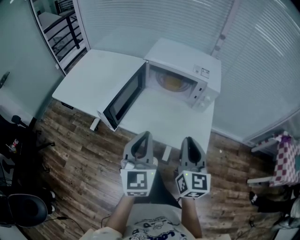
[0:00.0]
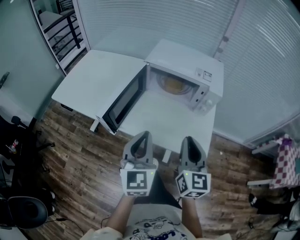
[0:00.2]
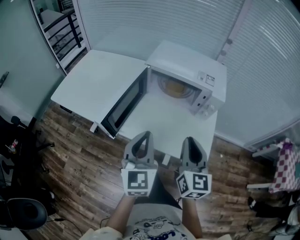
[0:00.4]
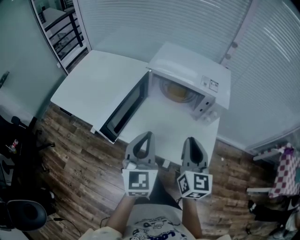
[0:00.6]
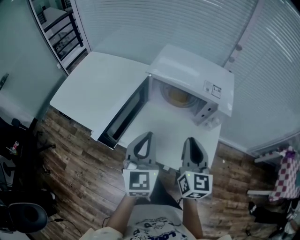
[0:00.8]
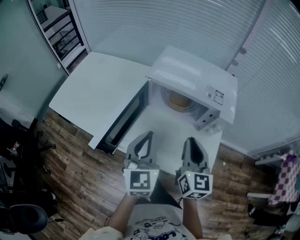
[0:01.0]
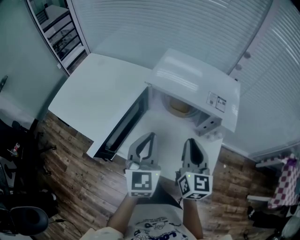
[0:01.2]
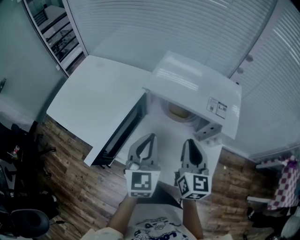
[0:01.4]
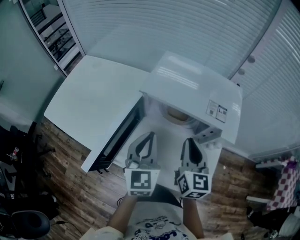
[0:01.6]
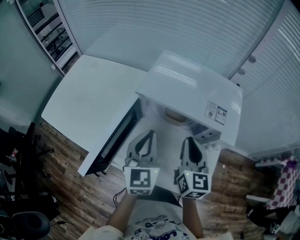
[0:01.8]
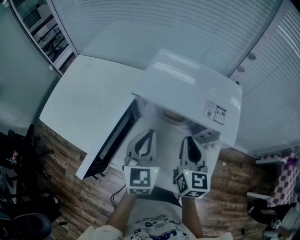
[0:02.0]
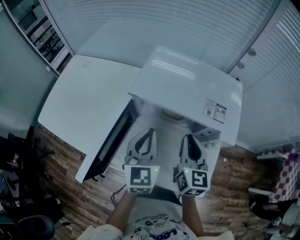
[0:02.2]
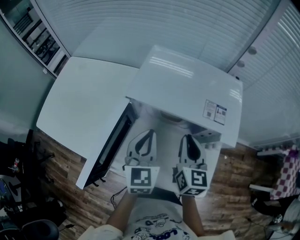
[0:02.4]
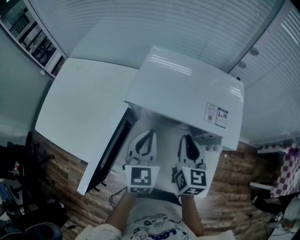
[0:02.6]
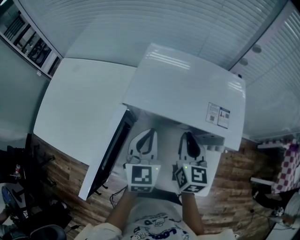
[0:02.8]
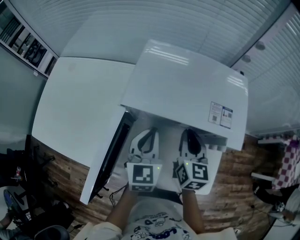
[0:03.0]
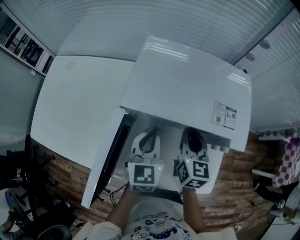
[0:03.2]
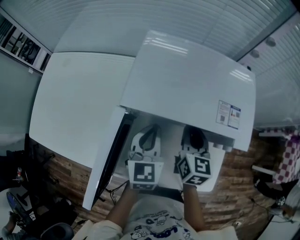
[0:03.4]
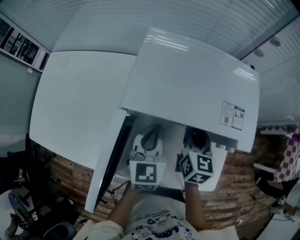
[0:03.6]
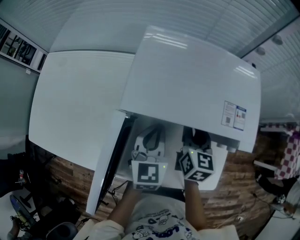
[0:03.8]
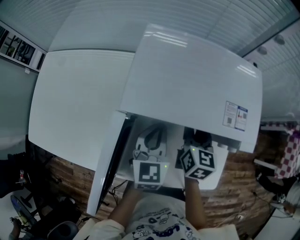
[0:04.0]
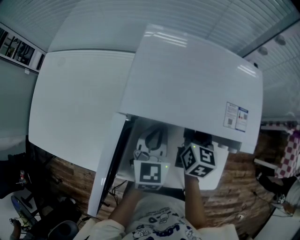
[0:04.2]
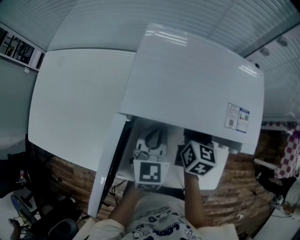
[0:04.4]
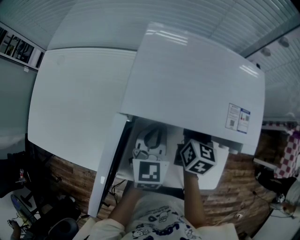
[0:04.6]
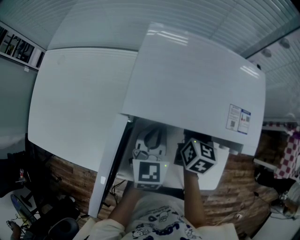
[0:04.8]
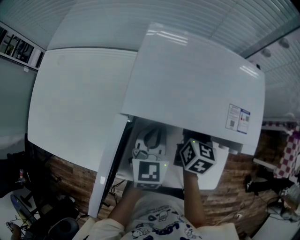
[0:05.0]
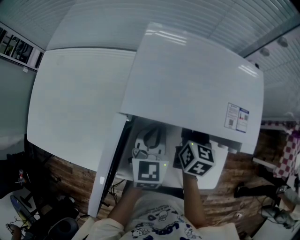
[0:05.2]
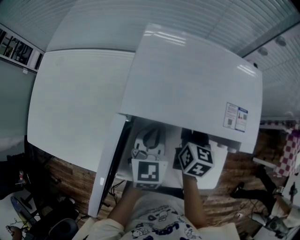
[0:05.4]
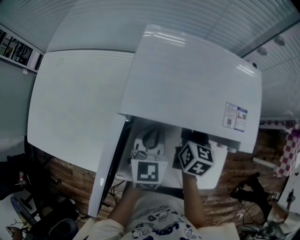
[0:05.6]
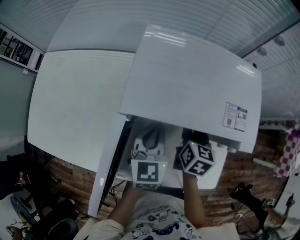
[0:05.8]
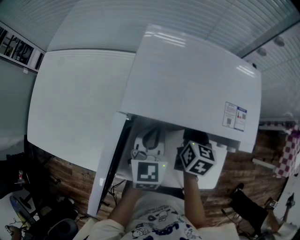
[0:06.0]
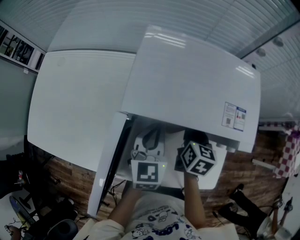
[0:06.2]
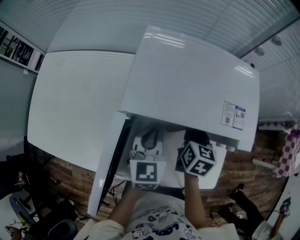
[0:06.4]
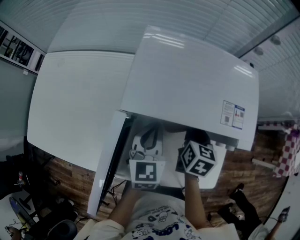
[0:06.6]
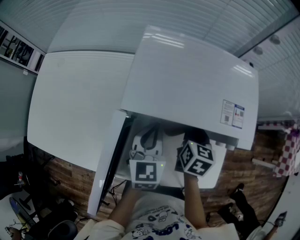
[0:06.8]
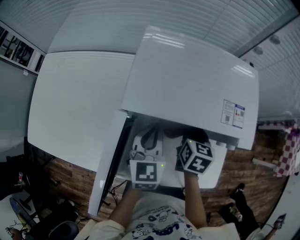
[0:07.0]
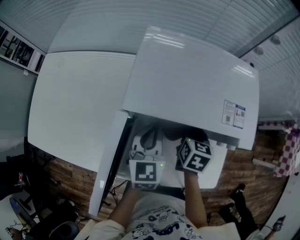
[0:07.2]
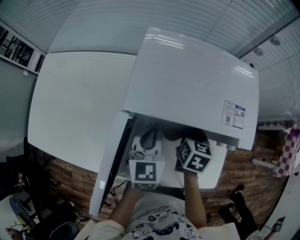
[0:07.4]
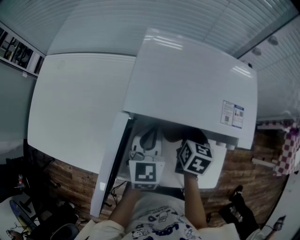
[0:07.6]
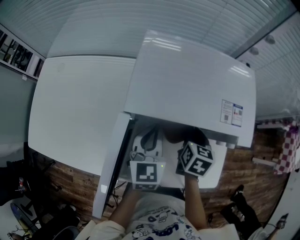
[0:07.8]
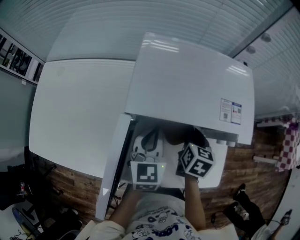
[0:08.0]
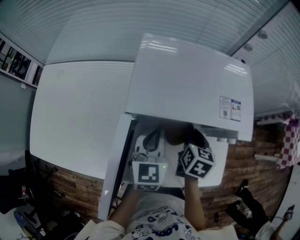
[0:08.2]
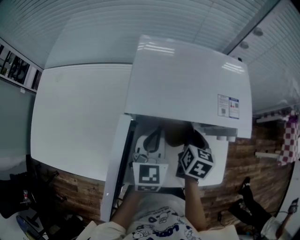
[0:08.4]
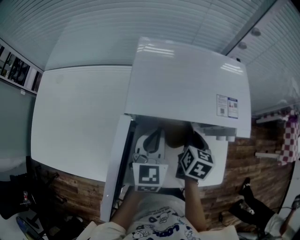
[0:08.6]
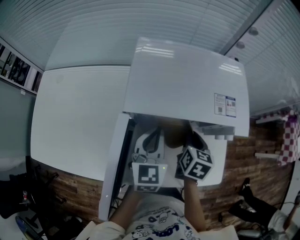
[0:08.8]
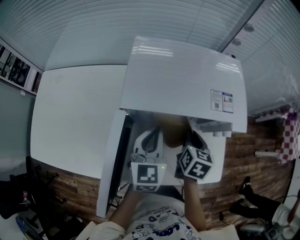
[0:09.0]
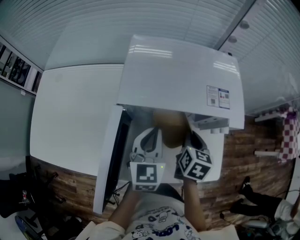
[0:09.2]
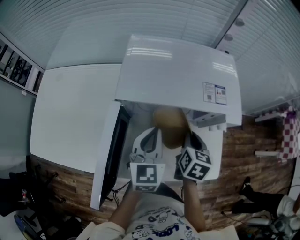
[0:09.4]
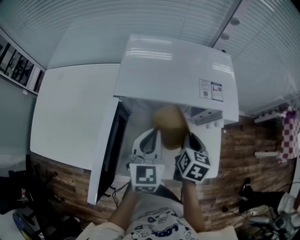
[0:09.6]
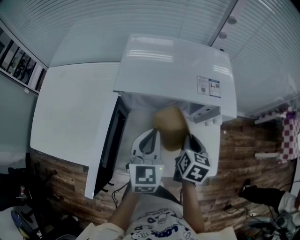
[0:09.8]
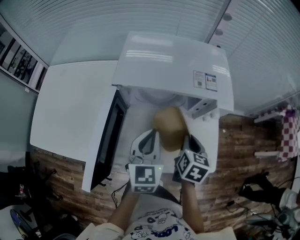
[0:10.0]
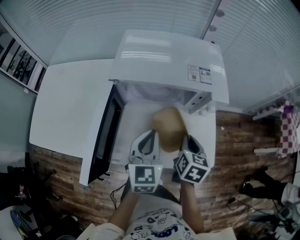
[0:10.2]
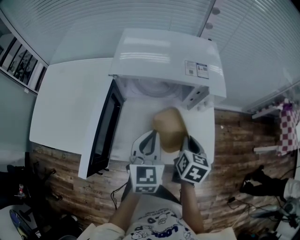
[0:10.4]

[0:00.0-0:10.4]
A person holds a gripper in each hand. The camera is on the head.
0:00.0 to 0:01.4: Both grippers travel together forward, some 25 cm.
0:01.4 to 0:03.0: Both grippers move forward and downward, approximately 15 cm.
0:03.0 to 0:04.4: The right gripper shifts roughly 10 cm downward and forward.
0:04.4 to 0:07.4: The grippers stay close to where they were, moving slightly.
0:07.4 to 0:09.0: The right gripper shifts by about 5 cm.
0:09.0 to 0:10.4: The two grippers go roughly 15 cm backward and to the right.

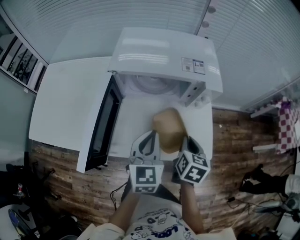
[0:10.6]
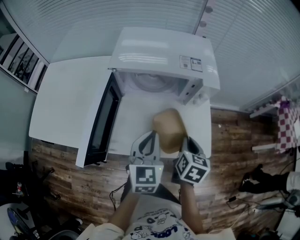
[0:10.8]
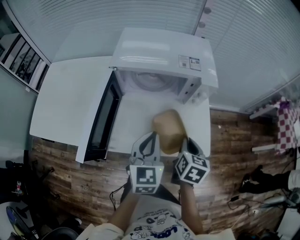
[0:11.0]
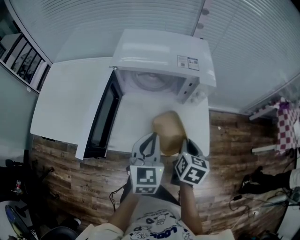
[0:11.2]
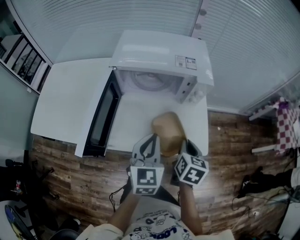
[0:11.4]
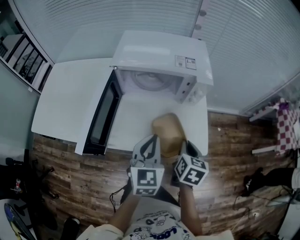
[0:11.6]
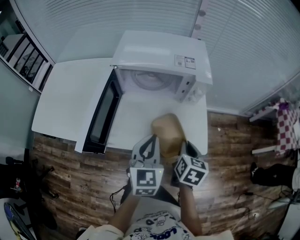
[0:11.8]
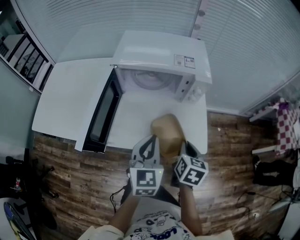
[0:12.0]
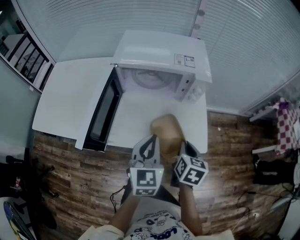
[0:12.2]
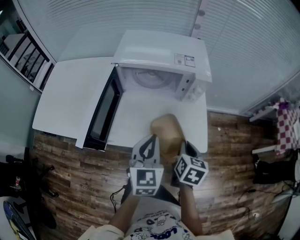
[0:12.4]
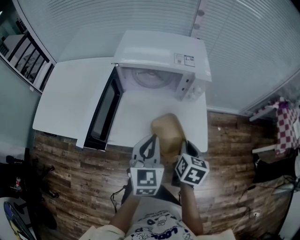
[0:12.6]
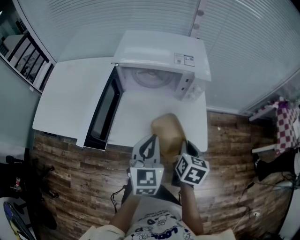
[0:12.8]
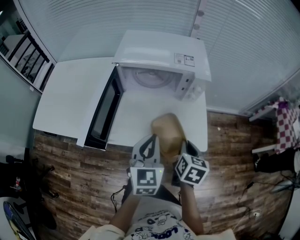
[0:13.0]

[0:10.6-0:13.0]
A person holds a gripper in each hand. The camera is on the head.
0:10.6 to 0:11.8: The two grippers go some 5 cm backward.
0:11.8 to 0:13.0: The grippers make only small movements.

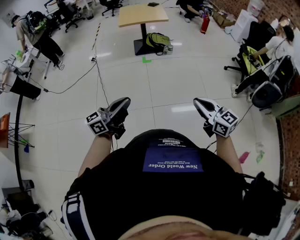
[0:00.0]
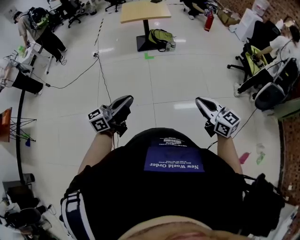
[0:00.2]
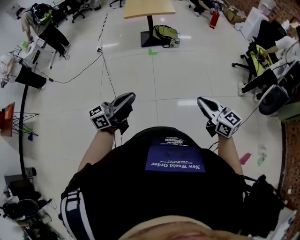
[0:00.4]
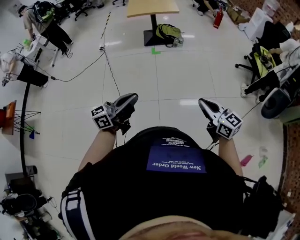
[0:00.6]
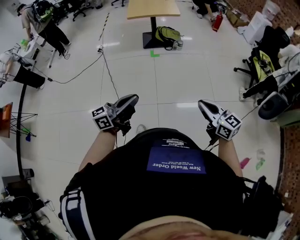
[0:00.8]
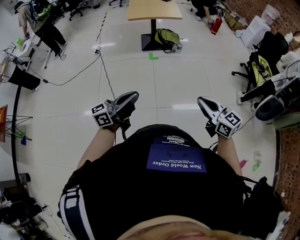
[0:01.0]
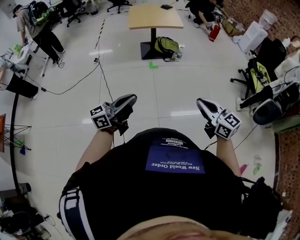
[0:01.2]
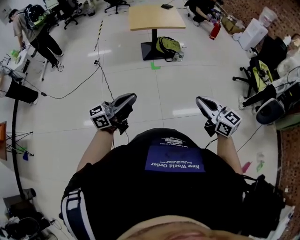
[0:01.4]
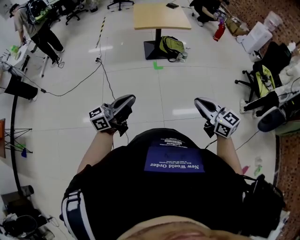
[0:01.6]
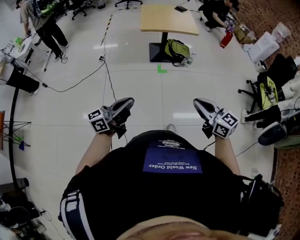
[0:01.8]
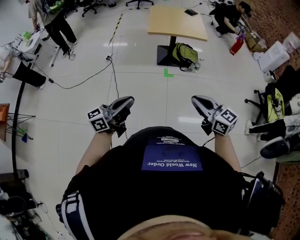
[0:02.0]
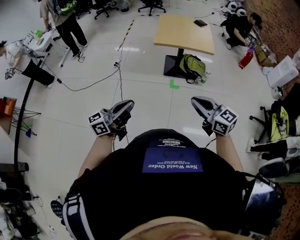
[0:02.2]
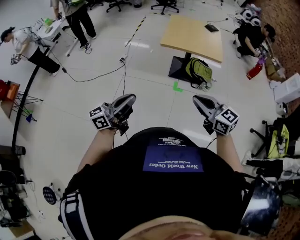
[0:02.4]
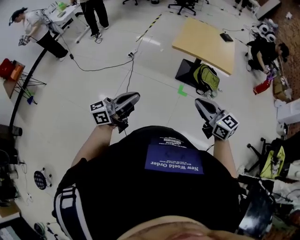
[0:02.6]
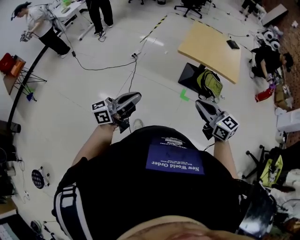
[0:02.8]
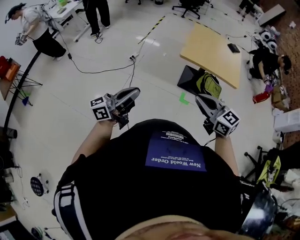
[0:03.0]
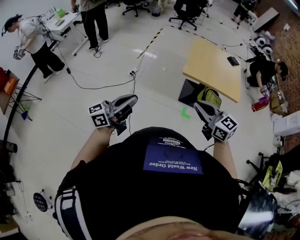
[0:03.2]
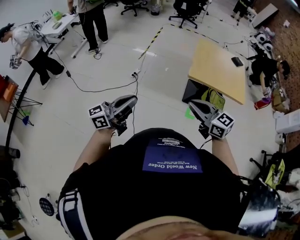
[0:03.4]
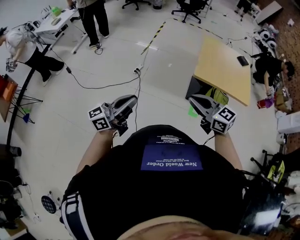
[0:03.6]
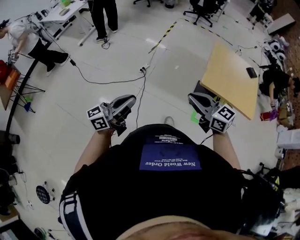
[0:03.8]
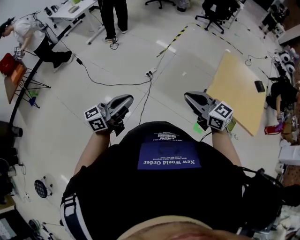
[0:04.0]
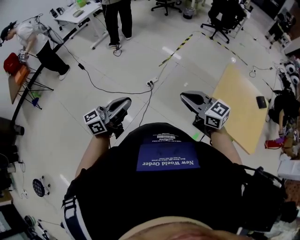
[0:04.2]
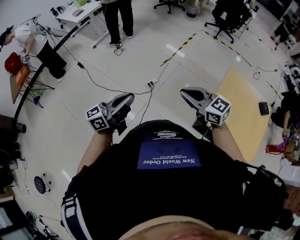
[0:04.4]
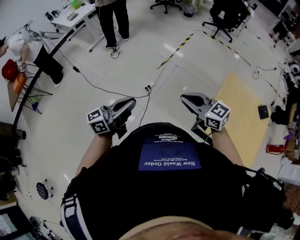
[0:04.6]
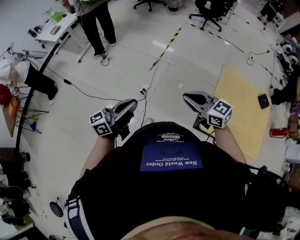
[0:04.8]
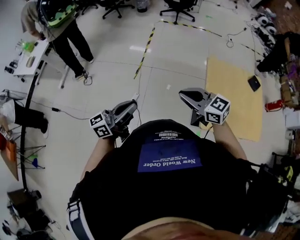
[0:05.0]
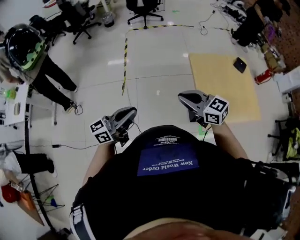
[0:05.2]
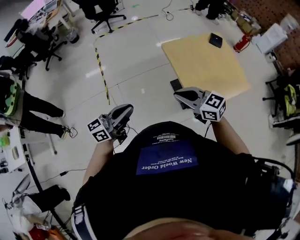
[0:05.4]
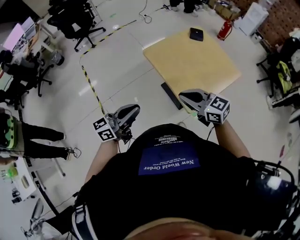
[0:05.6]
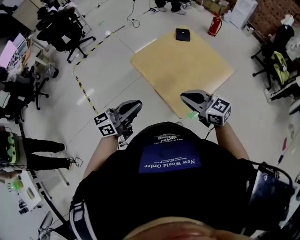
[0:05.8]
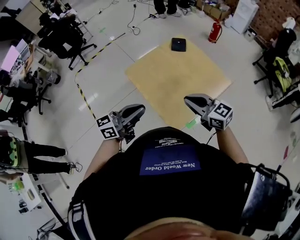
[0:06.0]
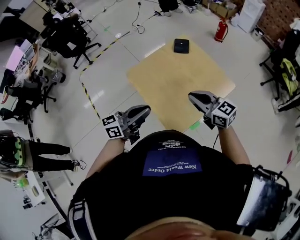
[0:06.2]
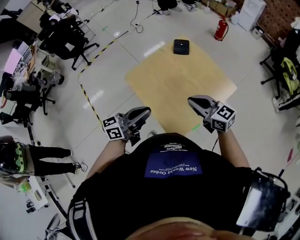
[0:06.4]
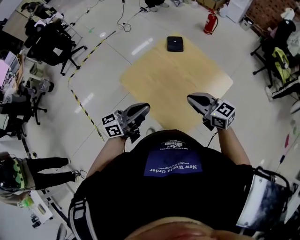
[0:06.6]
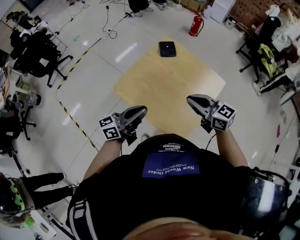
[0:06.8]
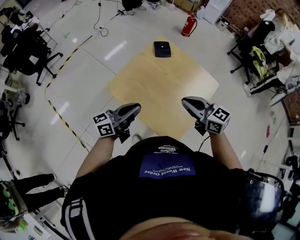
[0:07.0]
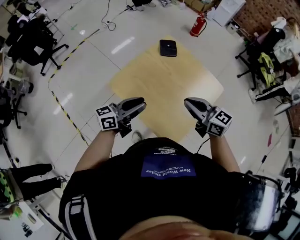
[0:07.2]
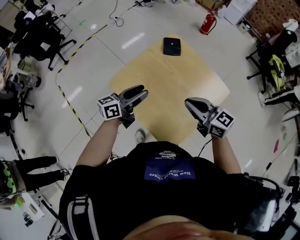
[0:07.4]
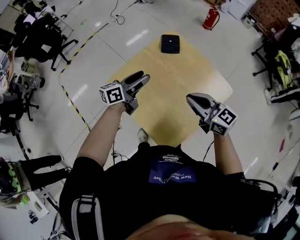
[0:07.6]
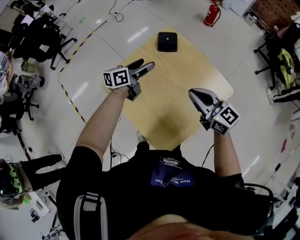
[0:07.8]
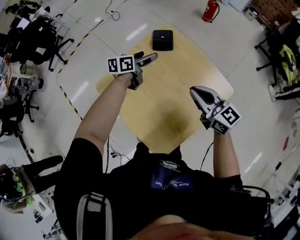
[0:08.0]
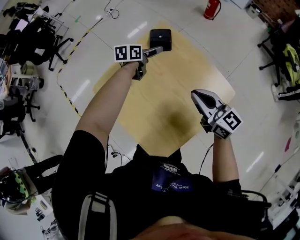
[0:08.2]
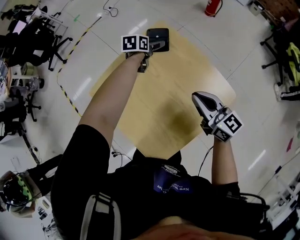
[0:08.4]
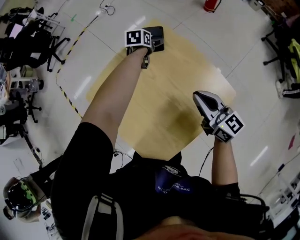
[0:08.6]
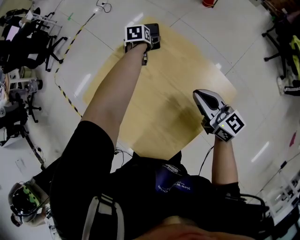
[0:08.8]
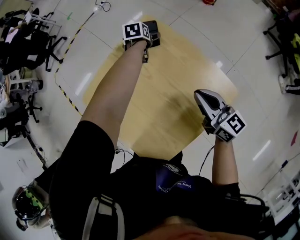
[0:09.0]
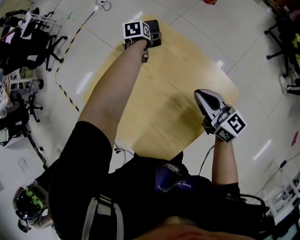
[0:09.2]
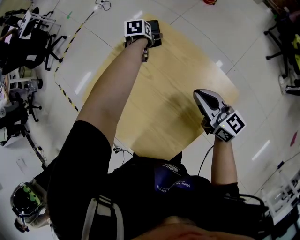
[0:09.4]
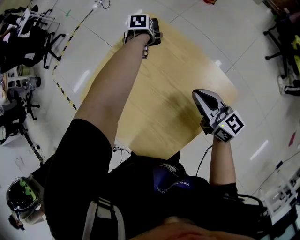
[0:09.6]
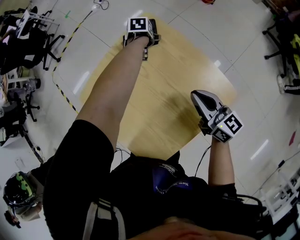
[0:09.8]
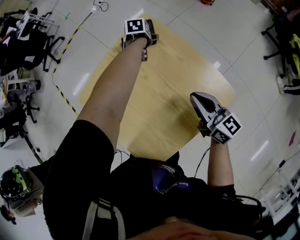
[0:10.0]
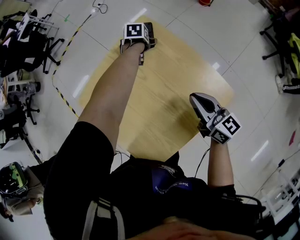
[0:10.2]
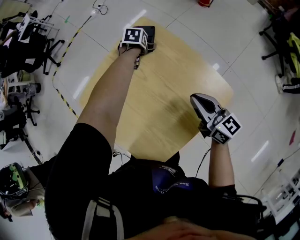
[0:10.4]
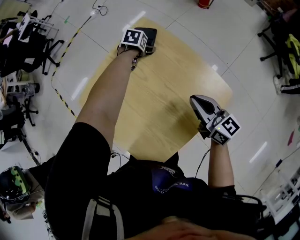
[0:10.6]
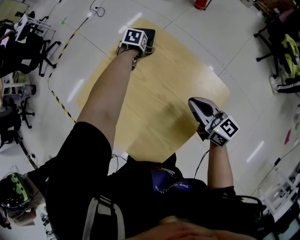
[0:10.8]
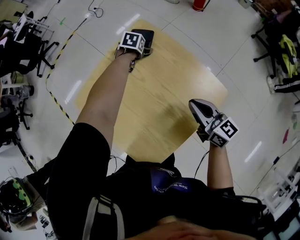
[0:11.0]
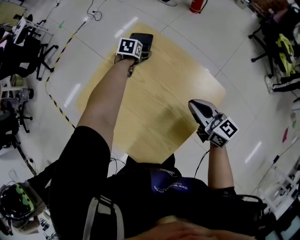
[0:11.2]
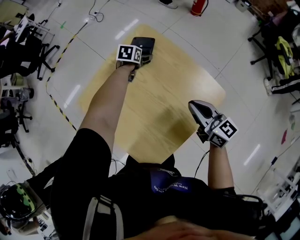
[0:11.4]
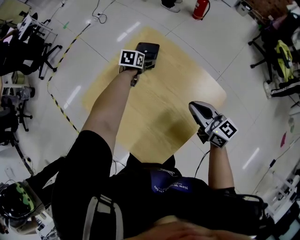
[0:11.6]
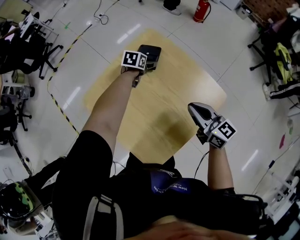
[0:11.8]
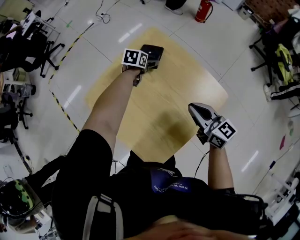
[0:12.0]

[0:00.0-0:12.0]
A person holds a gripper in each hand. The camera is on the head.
0:00.0 to 0:01.6: Both grippers travel together forward and to the left, approximately 30 cm.
0:01.6 to 0:03.0: The right gripper changes place by approximately 50 cm, and swivels approximately 30 degrees; the left gripper moves some 35 cm, and swivels approximately 20 degrees.
0:03.0 to 0:04.4: The two grippers travel together, forward, about 50 cm. The right gripper turns by roughly 30 degrees.
0:04.4 to 0:06.0: The left gripper moves roughly 50 cm, and turns by roughly 80 degrees. Meanwhile the right gripper shifts by roughly 35 cm, and turns by some 80 degrees.
0:06.0 to 0:07.6: The left gripper travels forward by some 35 cm, and opens, while the right gripper is displaced forward by about 20 cm.
0:07.6 to 0:09.0: The right gripper moves to the right, forward and downward, about 20 cm, while the left gripper heads forward, downward and to the right, covering some 40 cm, tilts its fingers roughly 50 degrees downward, and opens its fingers.
0:09.0 to 0:10.4: There are only small adjustments of the grippers.
0:10.4 to 0:12.0: The right gripper ends up approximately 5 cm from where it was, while the left gripper travels backward by roughly 5 cm.
